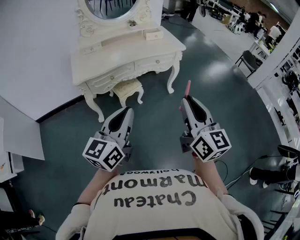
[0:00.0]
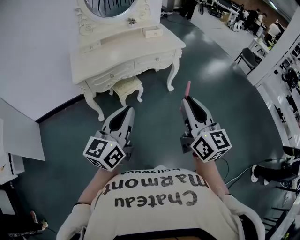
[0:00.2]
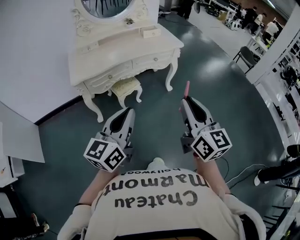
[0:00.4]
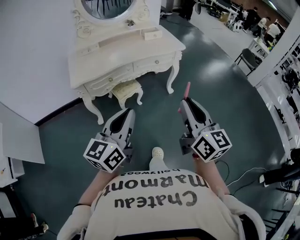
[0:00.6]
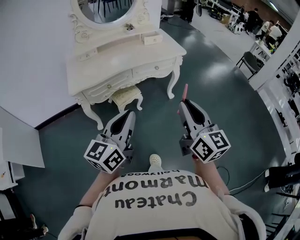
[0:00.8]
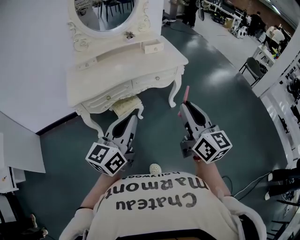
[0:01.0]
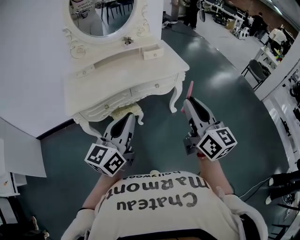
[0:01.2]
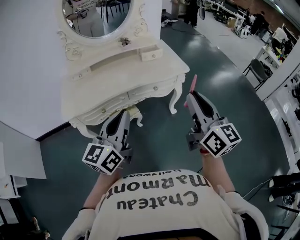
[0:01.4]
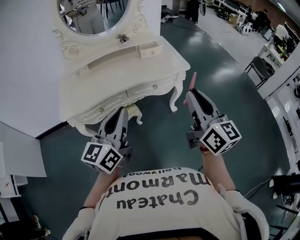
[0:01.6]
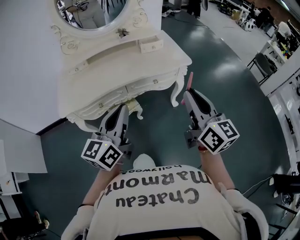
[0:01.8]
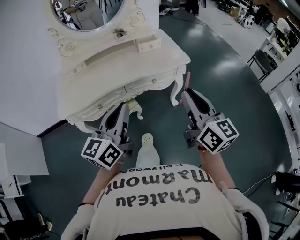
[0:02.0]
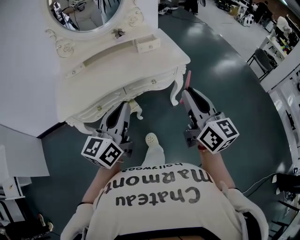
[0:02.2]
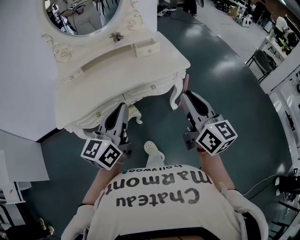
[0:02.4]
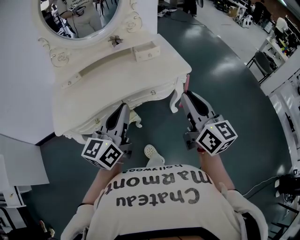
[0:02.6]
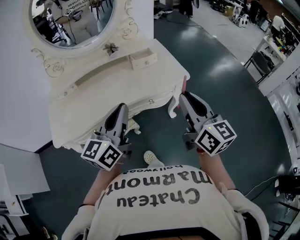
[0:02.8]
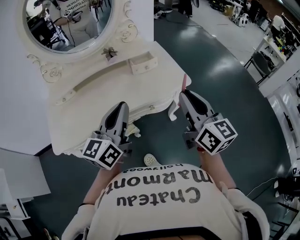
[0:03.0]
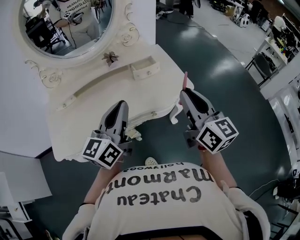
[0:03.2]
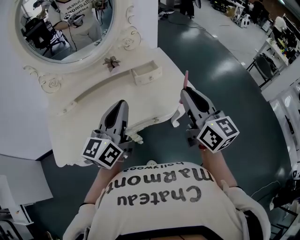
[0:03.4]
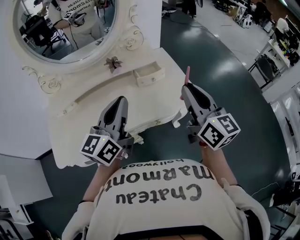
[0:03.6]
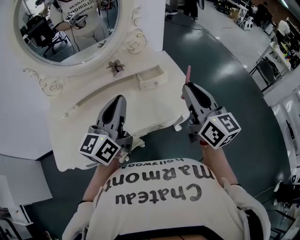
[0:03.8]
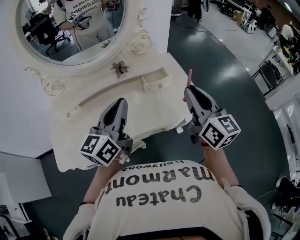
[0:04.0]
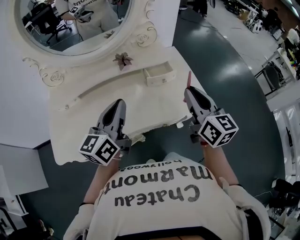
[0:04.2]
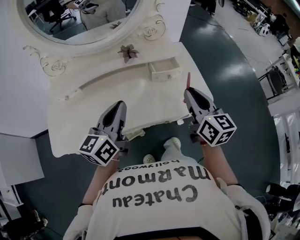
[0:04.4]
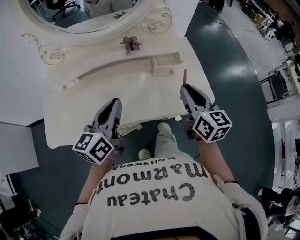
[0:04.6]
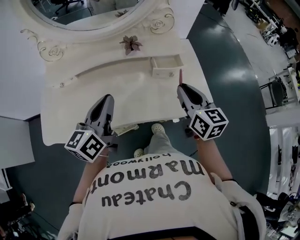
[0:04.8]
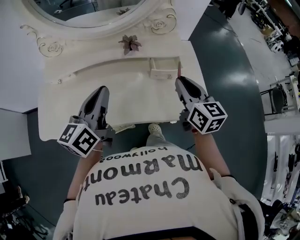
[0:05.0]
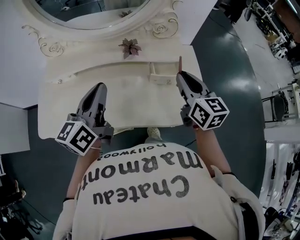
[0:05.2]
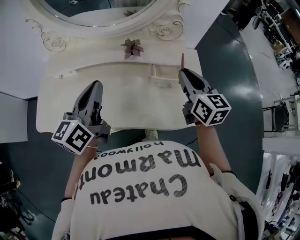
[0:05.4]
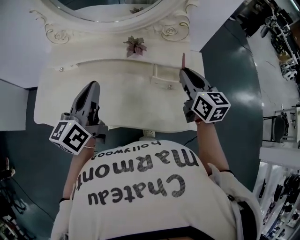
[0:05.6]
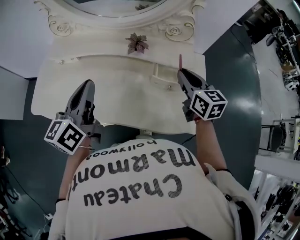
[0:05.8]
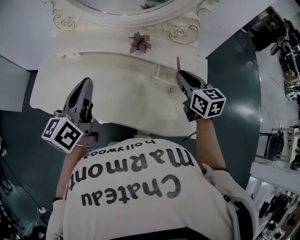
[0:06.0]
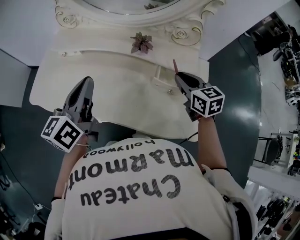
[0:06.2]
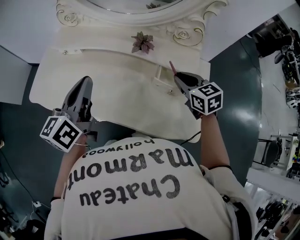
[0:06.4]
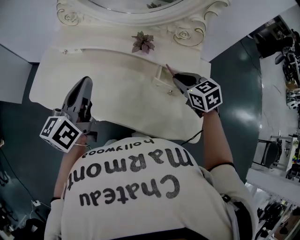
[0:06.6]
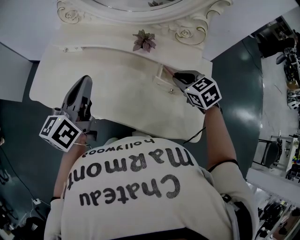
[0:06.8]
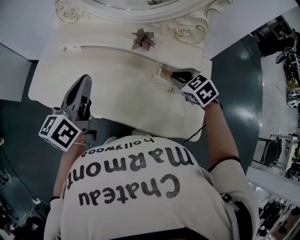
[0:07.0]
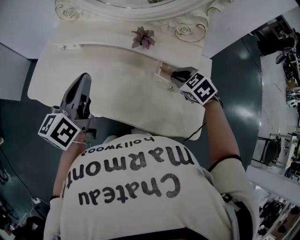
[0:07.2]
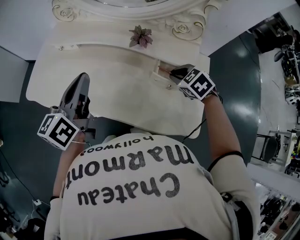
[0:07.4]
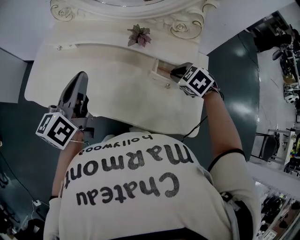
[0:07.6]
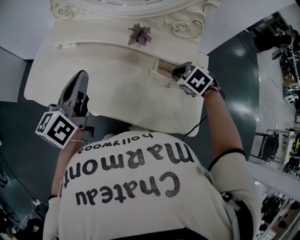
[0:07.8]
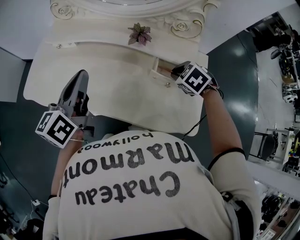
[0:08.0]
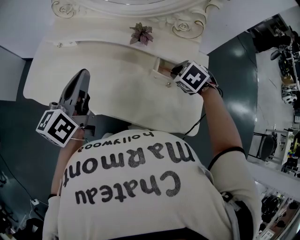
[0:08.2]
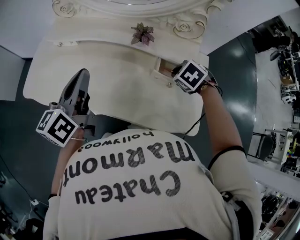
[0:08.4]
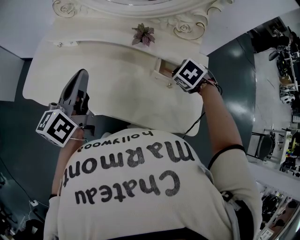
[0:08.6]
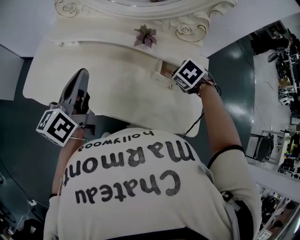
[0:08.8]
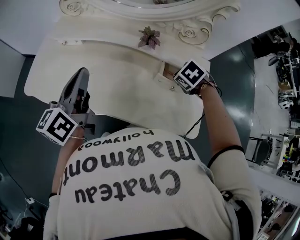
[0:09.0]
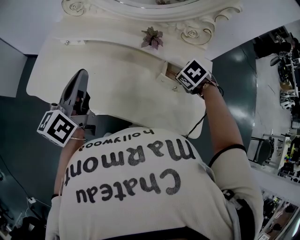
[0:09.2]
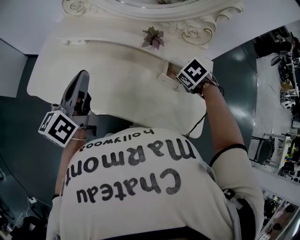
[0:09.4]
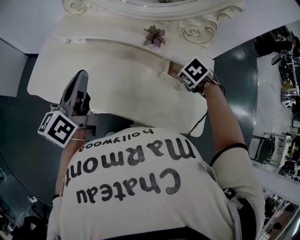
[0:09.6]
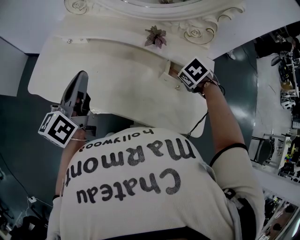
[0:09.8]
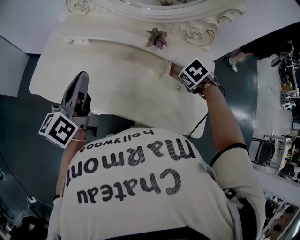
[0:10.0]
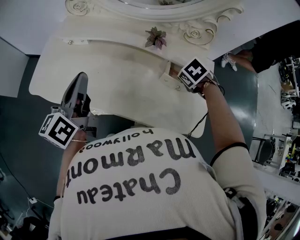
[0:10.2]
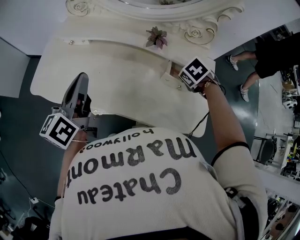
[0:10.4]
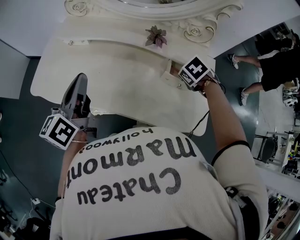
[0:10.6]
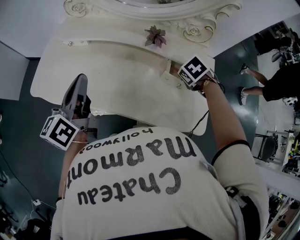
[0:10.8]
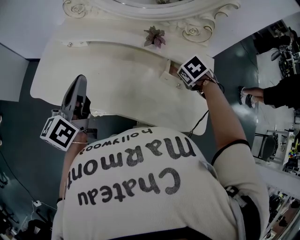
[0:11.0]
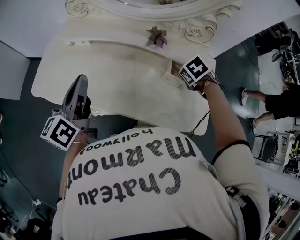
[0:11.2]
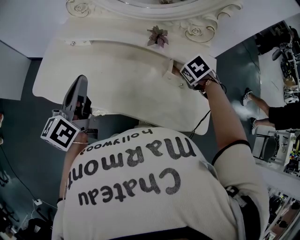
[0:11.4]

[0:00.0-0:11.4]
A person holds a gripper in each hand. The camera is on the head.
0:00.0 to 0:01.4: Both grippers move forward, roughly 25 cm.
0:01.4 to 0:02.8: The two grippers go some 20 cm forward.
0:02.8 to 0:04.2: Both grippers travel together forward, approximately 20 cm.
0:04.2 to 0:05.6: The left gripper shifts by some 5 cm, and turns by approximately 30 degrees; the right gripper shifts by some 20 cm, and swivels roughly 30 degrees.
0:05.6 to 0:07.2: The right gripper travels downward by some 15 cm, and angles its fingers downward, by some 40 degrees.
0:07.2 to 0:08.6: The right gripper swivels about 20 degrees.
0:08.6 to 0:10.0: The grippers stay close to where they were, moving slightly.
0:10.0 to 0:11.4: The grippers move only a little.

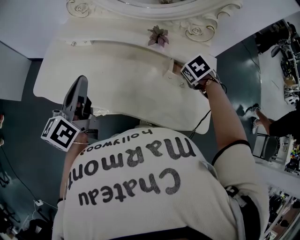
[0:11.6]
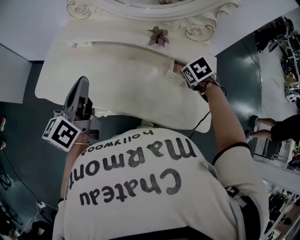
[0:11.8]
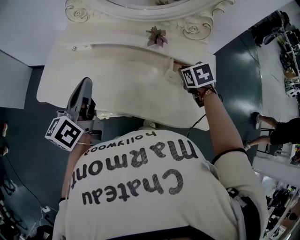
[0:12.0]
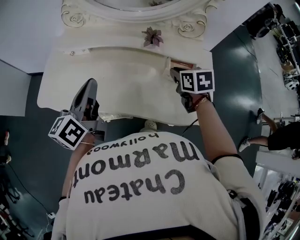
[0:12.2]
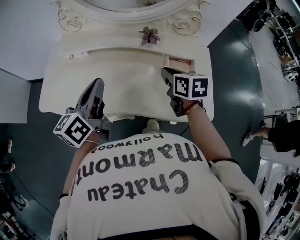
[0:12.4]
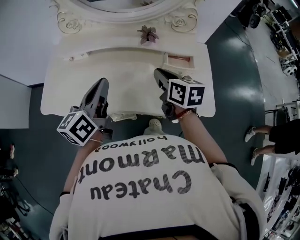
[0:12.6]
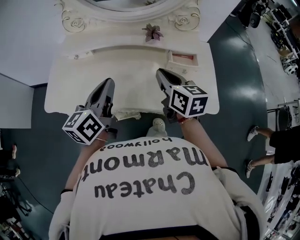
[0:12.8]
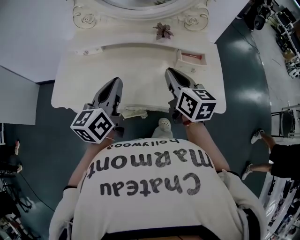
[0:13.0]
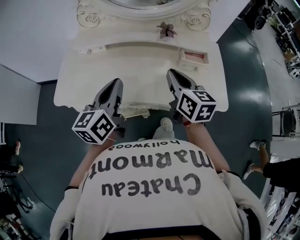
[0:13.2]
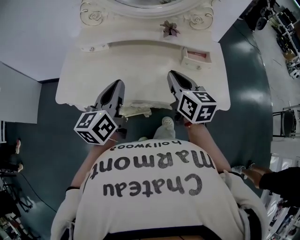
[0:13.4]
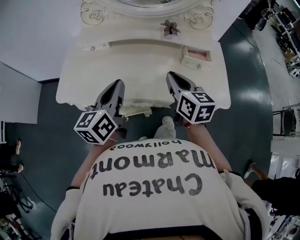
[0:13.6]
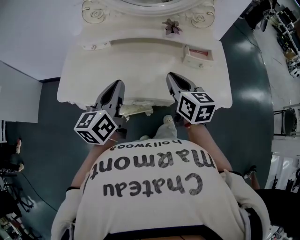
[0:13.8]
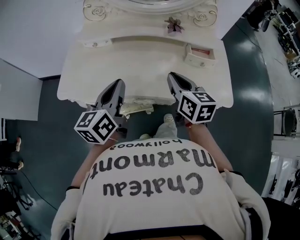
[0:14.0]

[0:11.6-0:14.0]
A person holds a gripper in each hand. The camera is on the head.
0:11.6 to 0:12.8: The left gripper shifts by about 5 cm. The right gripper ends up roughly 20 cm from where it was, and tilts its fingers roughly 60 degrees upward.
0:12.8 to 0:14.0: The left gripper travels to the left and backward by some 5 cm. Meanwhile the right gripper moves backward, roughly 5 cm.

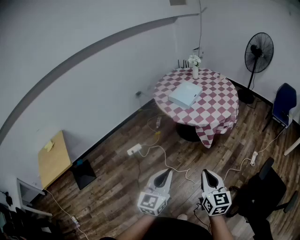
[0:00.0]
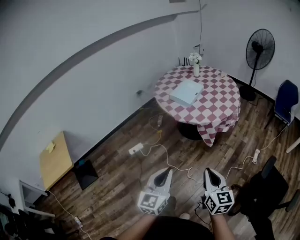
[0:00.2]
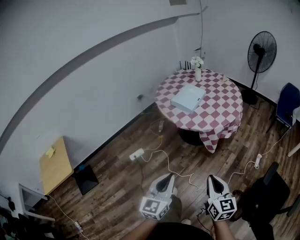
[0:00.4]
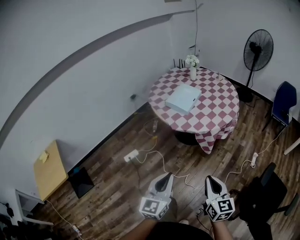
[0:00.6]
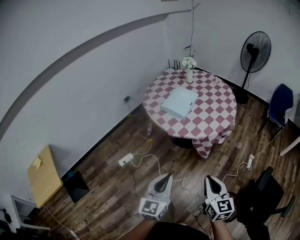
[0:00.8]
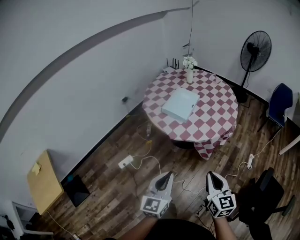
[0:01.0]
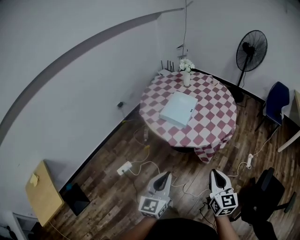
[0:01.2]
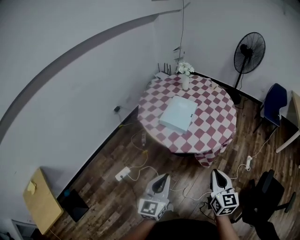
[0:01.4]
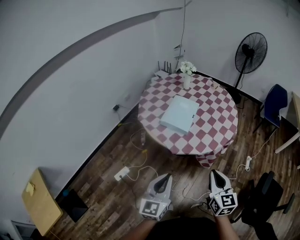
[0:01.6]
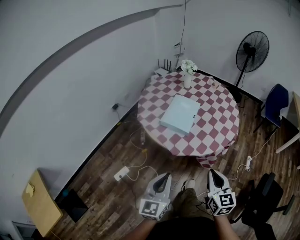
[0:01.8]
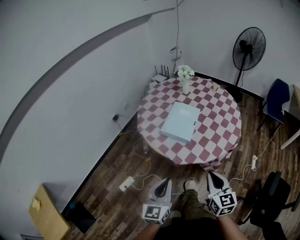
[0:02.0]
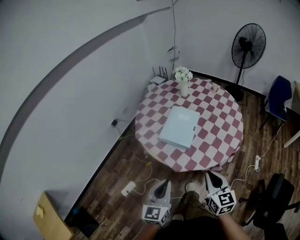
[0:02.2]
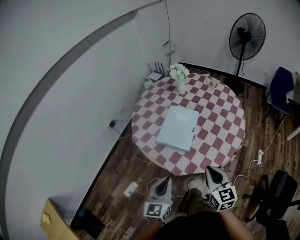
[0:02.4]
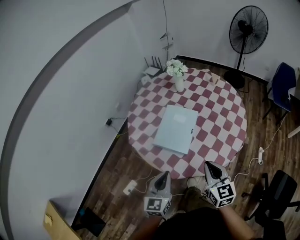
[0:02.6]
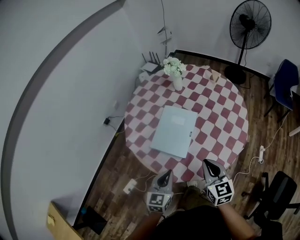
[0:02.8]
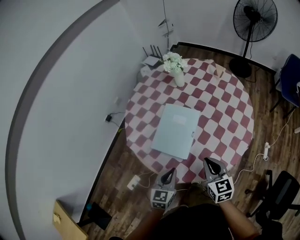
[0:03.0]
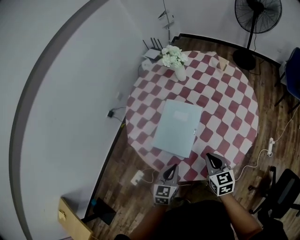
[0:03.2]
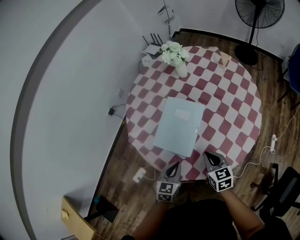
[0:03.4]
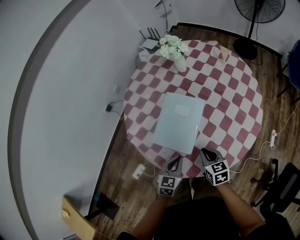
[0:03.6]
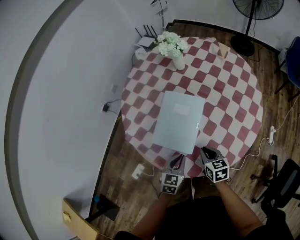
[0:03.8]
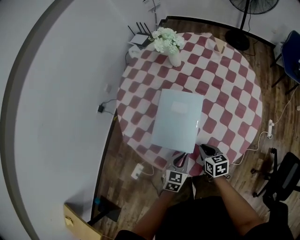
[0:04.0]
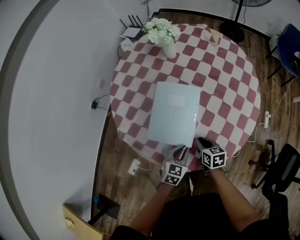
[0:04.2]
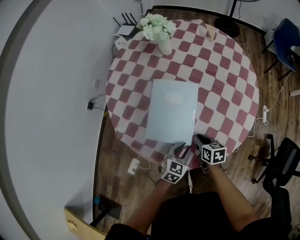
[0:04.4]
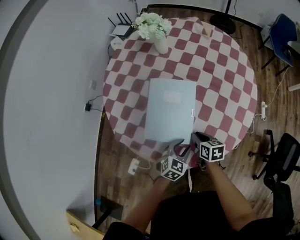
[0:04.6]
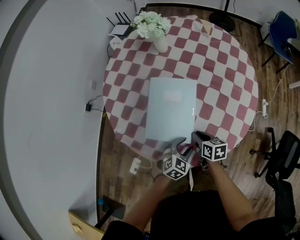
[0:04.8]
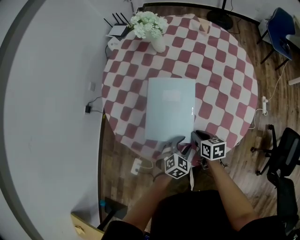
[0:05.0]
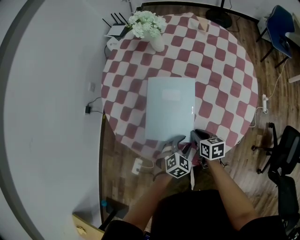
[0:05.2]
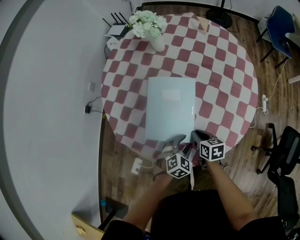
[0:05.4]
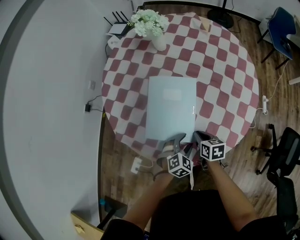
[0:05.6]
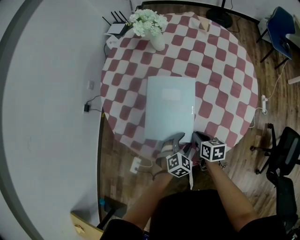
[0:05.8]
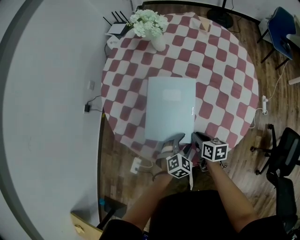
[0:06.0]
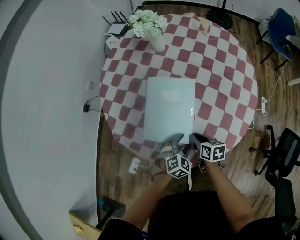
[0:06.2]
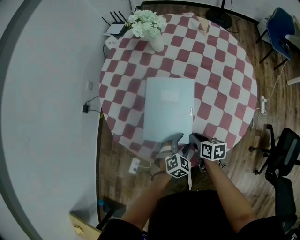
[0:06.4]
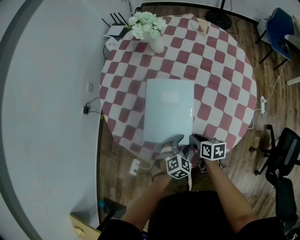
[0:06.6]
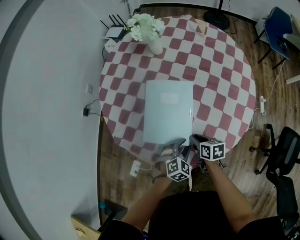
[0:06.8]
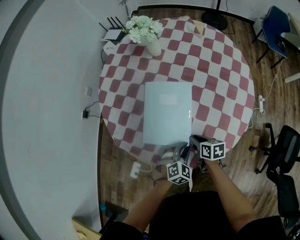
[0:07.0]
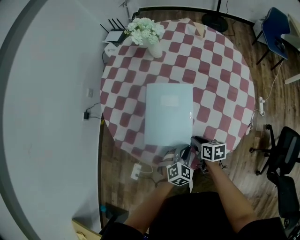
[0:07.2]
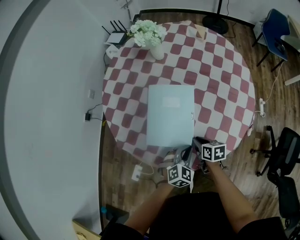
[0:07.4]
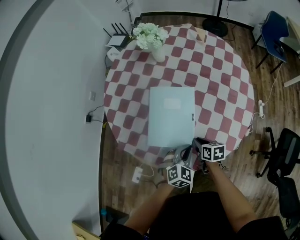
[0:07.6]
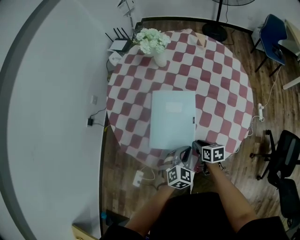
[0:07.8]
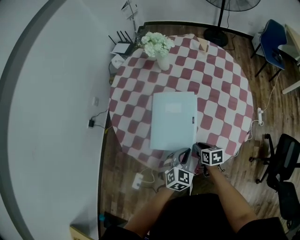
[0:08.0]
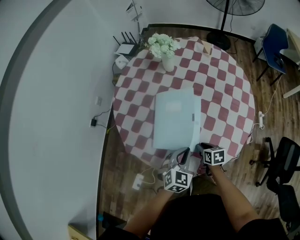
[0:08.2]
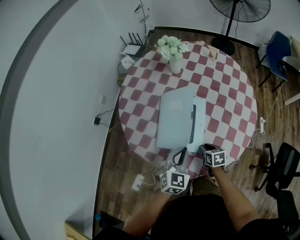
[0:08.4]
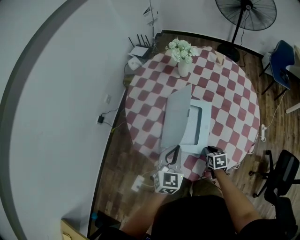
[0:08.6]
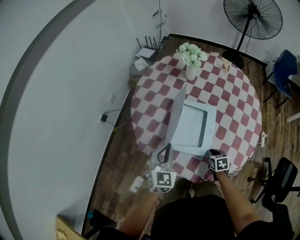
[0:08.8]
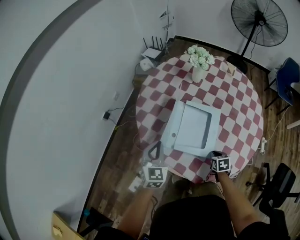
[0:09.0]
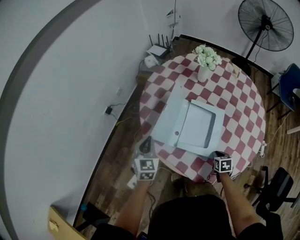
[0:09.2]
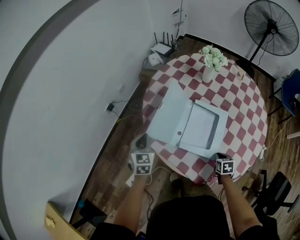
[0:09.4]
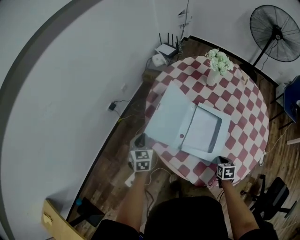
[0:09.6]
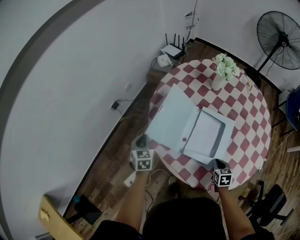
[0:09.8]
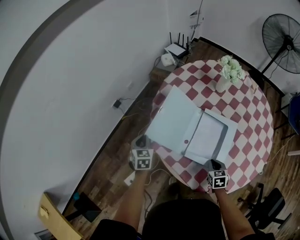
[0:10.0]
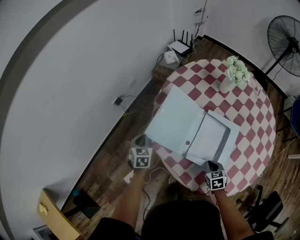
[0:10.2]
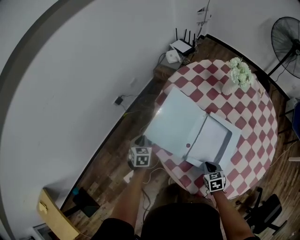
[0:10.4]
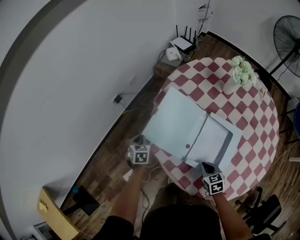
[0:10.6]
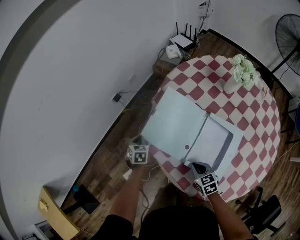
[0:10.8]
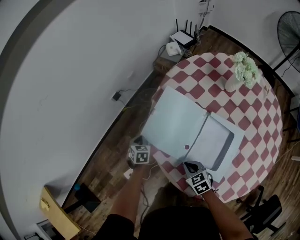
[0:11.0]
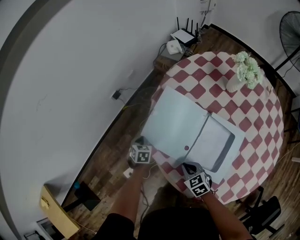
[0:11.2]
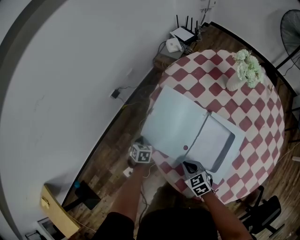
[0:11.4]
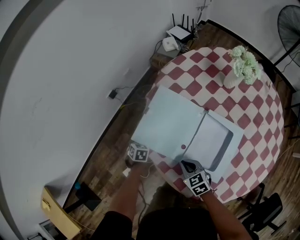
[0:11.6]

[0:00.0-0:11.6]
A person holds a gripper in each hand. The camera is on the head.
0:00.0 to 0:01.4: The grippers both shift forward by some 35 cm.
0:01.4 to 0:02.8: The grippers both shift forward by roughly 40 cm.
0:02.8 to 0:04.4: The two grippers go about 25 cm downward and forward. The right gripper turns by approximately 40 degrees; the left gripper changes its angle by approximately 40 degrees, and opens its fingers.
0:04.4 to 0:05.8: The left gripper rotates approximately 30 degrees, and opens up.
0:05.8 to 0:07.2: The left gripper closes its fingers.
0:07.2 to 0:08.8: The right gripper swivels some 30 degrees, while the left gripper goes about 30 cm to the left and upward, and turns by approximately 40 degrees.
0:08.8 to 0:10.2: The left gripper heads to the left, downward and forward, covering some 30 cm, and changes its angle by roughly 40 degrees, while the right gripper moves to the left and forward, about 15 cm, and turns by some 20 degrees.
0:10.2 to 0:11.6: The right gripper travels forward and to the left by about 15 cm, and rotates approximately 30 degrees; the left gripper shifts some 15 cm downward, and changes its angle by roughly 20 degrees.
